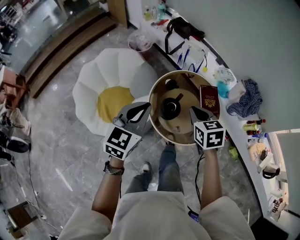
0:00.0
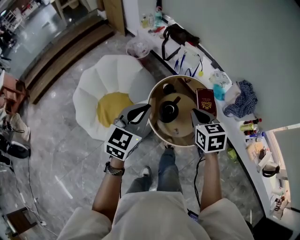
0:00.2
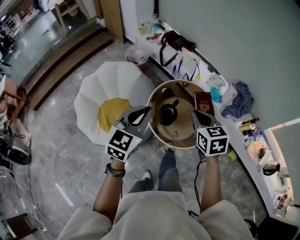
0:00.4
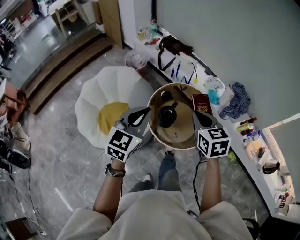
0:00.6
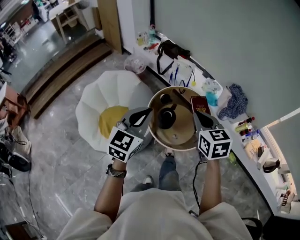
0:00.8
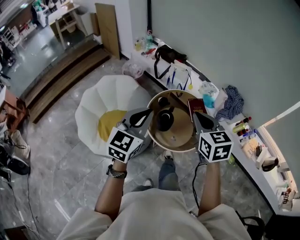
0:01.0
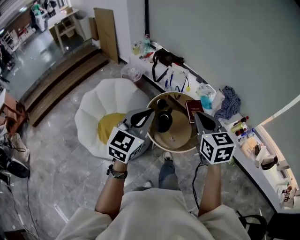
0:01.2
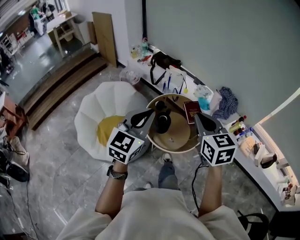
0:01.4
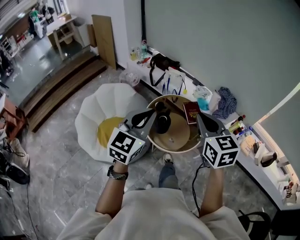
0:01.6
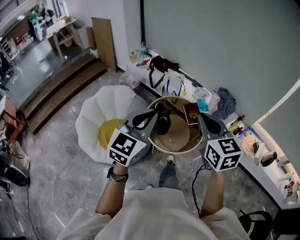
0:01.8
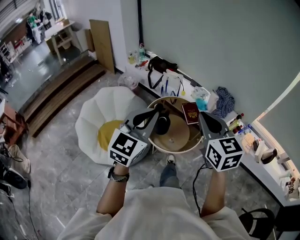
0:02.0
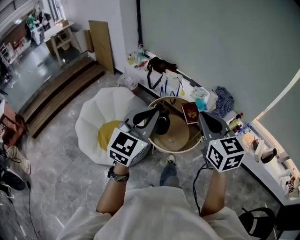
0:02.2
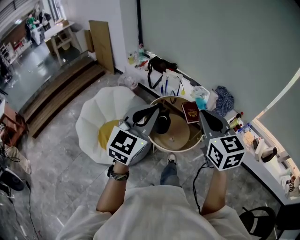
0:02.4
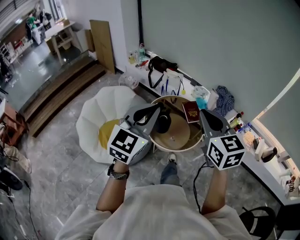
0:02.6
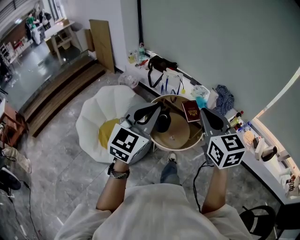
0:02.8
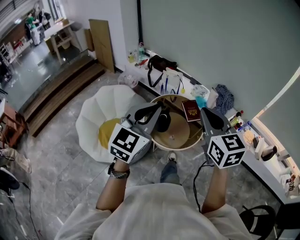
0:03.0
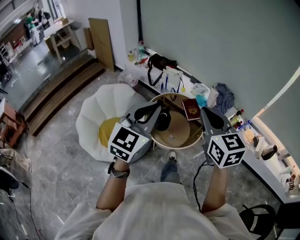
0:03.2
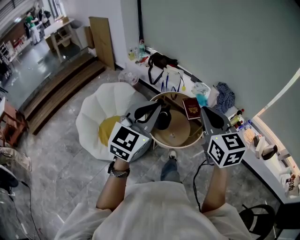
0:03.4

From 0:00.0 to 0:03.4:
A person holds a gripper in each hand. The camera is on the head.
From 0:00.0 to 0:01.6: The grippers both shift upward and backward by roughly 25 cm. The right gripper changes its angle by approximately 30 degrees.
From 0:01.6 to 0:03.4: The left gripper changes place by some 5 cm. The right gripper ends up some 5 cm from where it was.

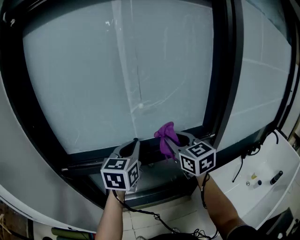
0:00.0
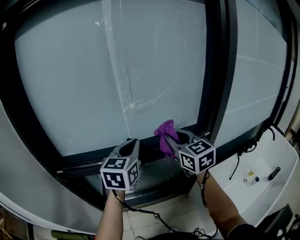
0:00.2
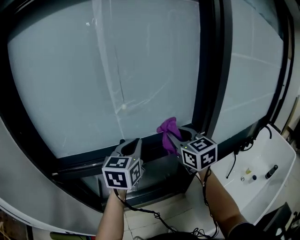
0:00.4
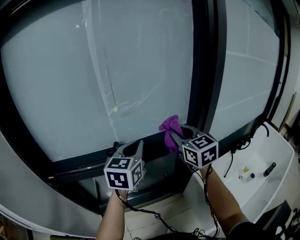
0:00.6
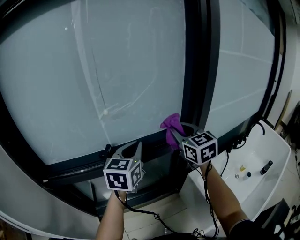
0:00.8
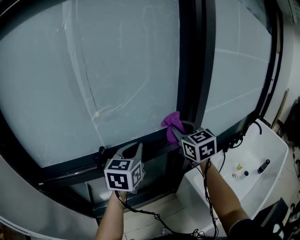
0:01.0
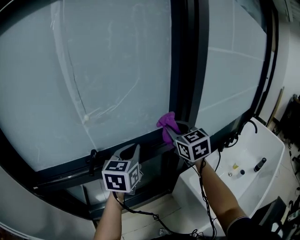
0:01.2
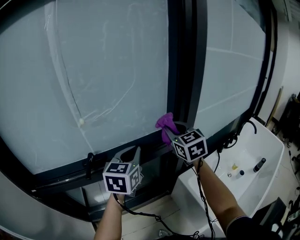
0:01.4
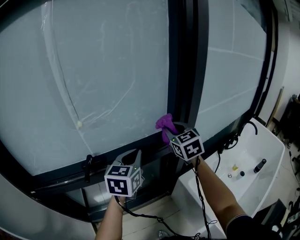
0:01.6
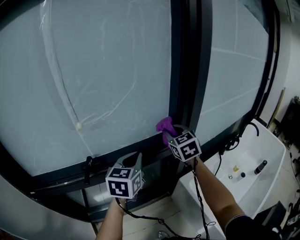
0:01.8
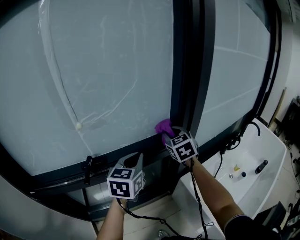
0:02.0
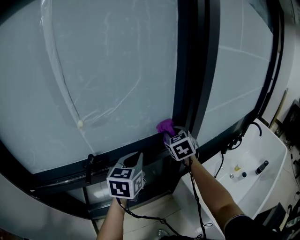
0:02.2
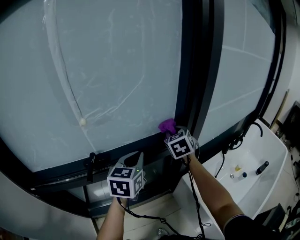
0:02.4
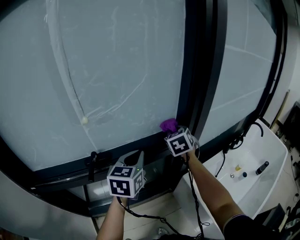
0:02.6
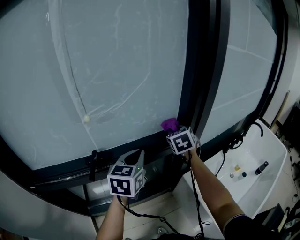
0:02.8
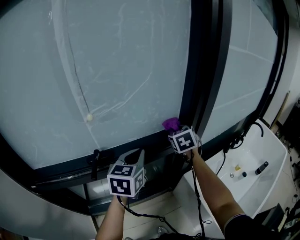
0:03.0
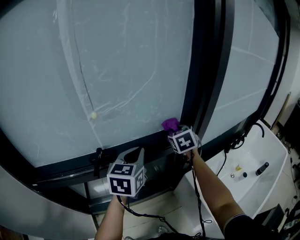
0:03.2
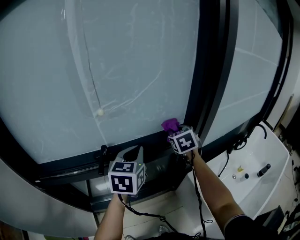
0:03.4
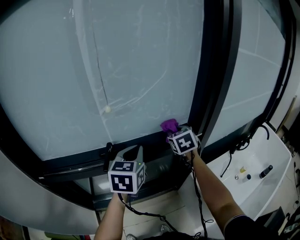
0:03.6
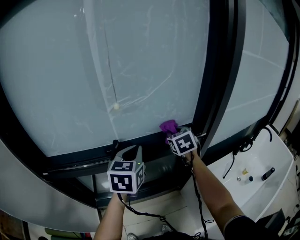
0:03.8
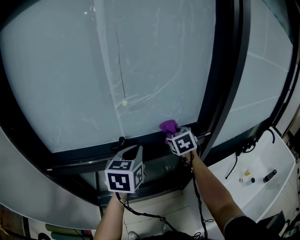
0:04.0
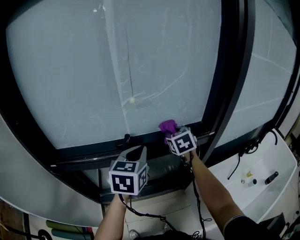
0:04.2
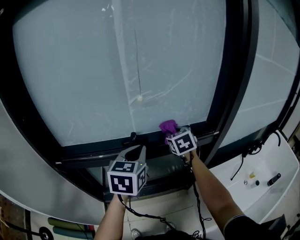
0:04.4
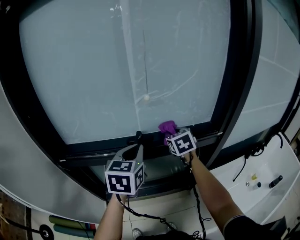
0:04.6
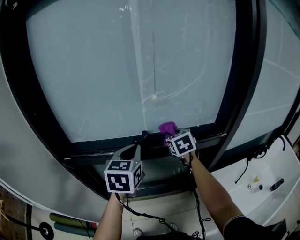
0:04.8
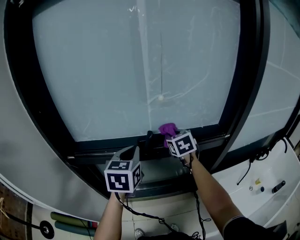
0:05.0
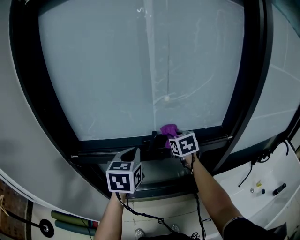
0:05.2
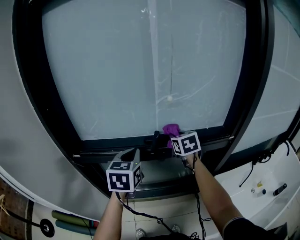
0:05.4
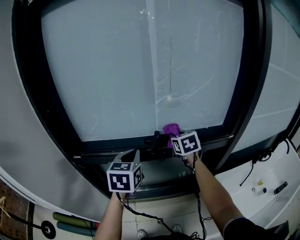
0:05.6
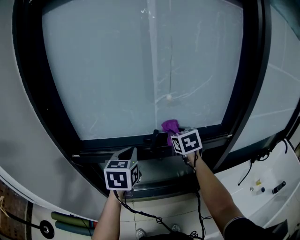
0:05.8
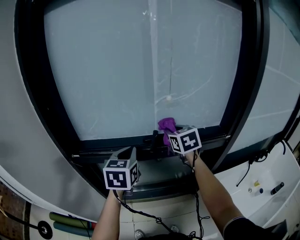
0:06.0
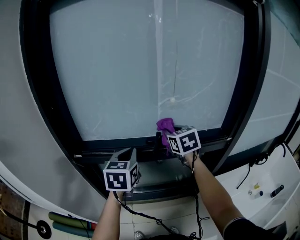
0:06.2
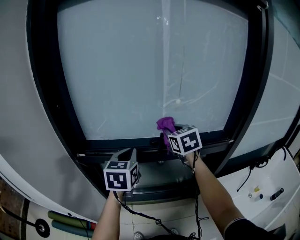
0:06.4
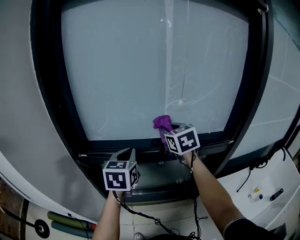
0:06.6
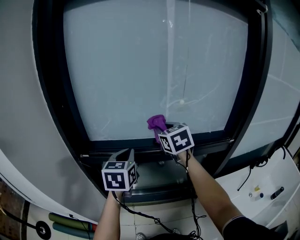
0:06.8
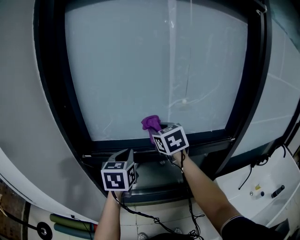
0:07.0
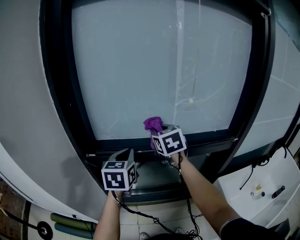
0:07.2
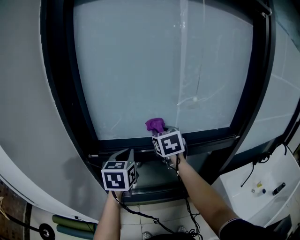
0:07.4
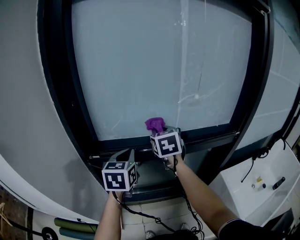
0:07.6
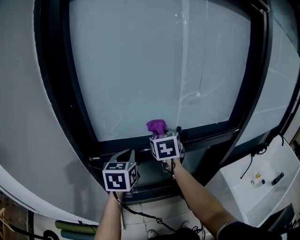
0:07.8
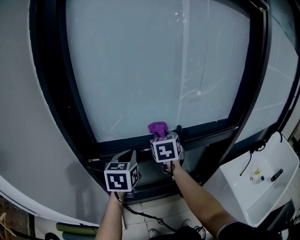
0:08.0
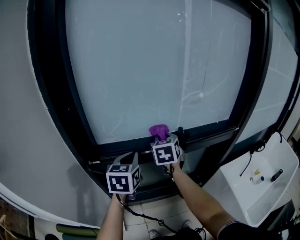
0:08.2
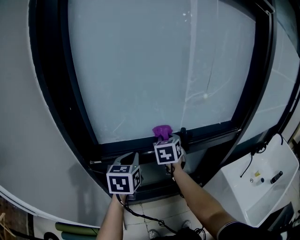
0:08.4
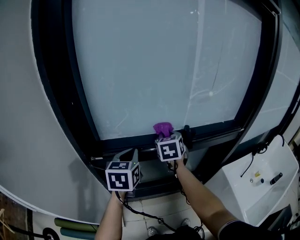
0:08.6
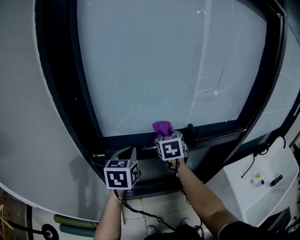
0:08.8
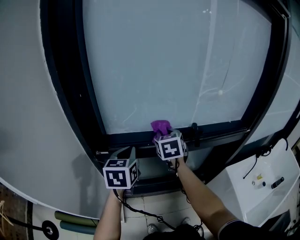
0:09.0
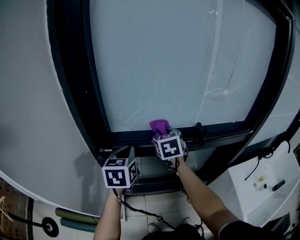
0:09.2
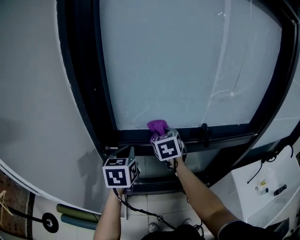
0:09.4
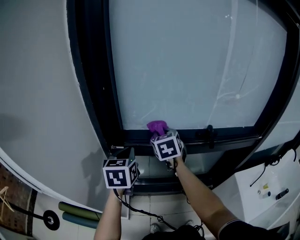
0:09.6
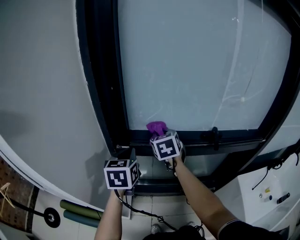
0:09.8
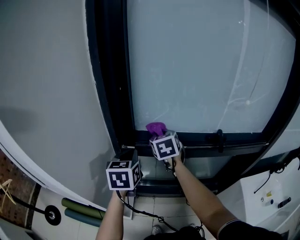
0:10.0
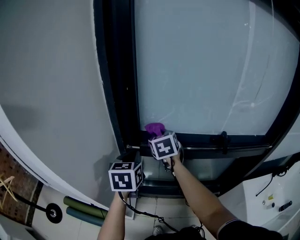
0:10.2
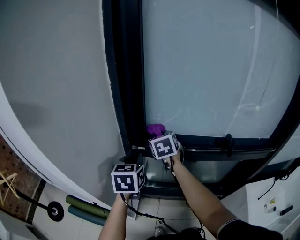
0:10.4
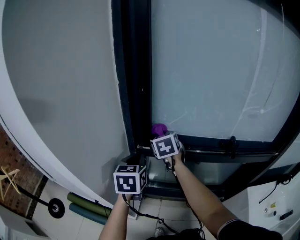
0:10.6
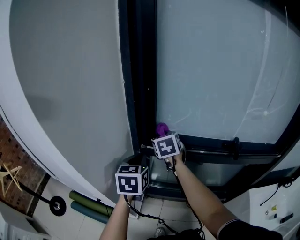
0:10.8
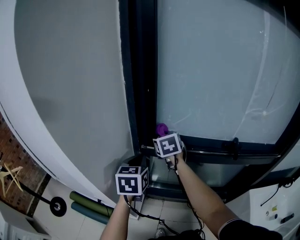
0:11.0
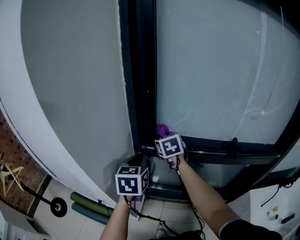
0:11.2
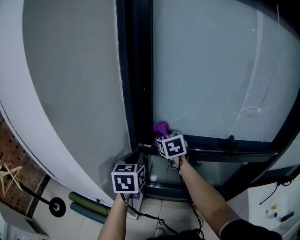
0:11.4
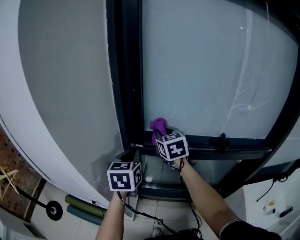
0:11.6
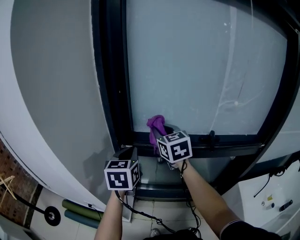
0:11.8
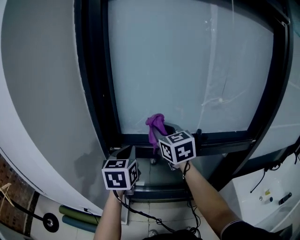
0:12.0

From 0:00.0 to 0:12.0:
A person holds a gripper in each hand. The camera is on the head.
From 0:00.0 to 0:01.6: Both grippers travel together to the right and forward, about 20 cm. The right gripper rotates approximately 20 degrees.
From 0:01.6 to 0:03.0: The right gripper is displaced downward by roughly 10 cm, and turns by approximately 20 degrees.
From 0:03.0 to 0:04.4: The right gripper is displaced to the left by roughly 15 cm. Meanwhile the left gripper moves to the left and backward, about 15 cm.
From 0:04.4 to 0:06.0: The left gripper heads to the left, covering some 15 cm. The right gripper goes roughly 10 cm to the left and upward.
From 0:06.0 to 0:07.6: Both grippers move to the left, some 15 cm.
From 0:07.6 to 0:09.0: The right gripper goes roughly 5 cm downward. Meanwhile the left gripper moves to the left, some 5 cm.
From 0:09.0 to 0:10.4: The left gripper moves to the left, about 10 cm. Meanwhile the right gripper goes some 20 cm to the left, and swivels approximately 20 degrees.
From 0:10.4 to 0:12.0: The right gripper shifts approximately 20 cm upward, to the right and backward, and swivels about 20 degrees; the left gripper moves to the right and upward, about 10 cm.

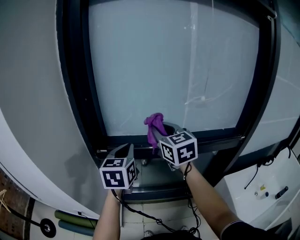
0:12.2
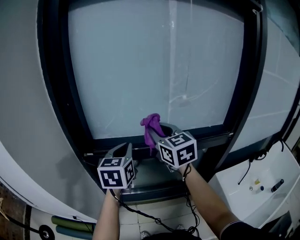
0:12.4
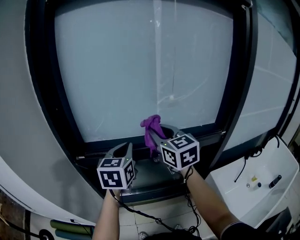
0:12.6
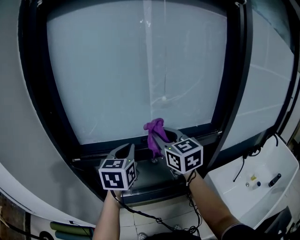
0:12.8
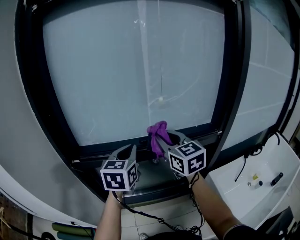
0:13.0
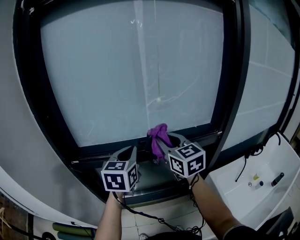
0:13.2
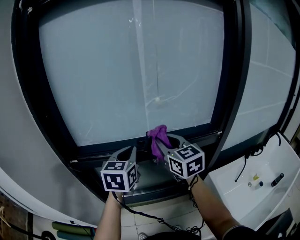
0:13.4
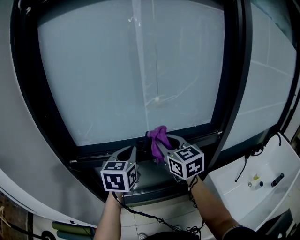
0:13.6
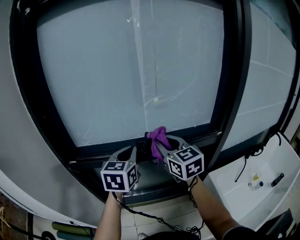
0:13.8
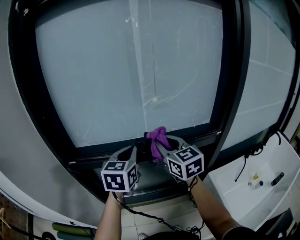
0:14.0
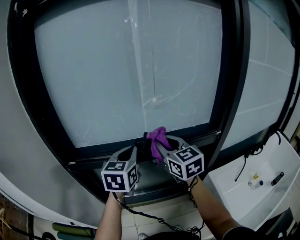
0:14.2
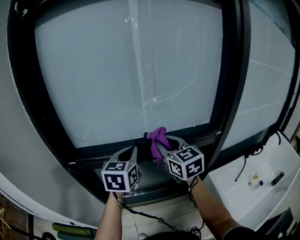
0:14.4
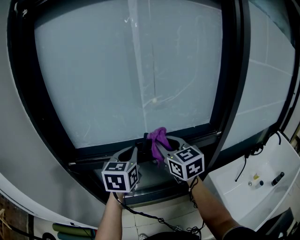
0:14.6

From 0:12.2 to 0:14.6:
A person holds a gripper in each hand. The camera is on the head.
From 0:12.2 to 0:13.4: Both grippers move to the right, roughly 15 cm.
From 0:13.4 to 0:14.6: The grippers stay close to where they were, moving slightly.

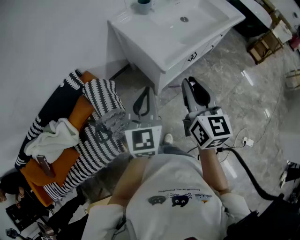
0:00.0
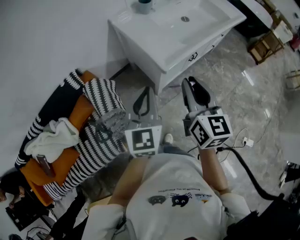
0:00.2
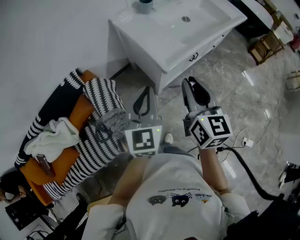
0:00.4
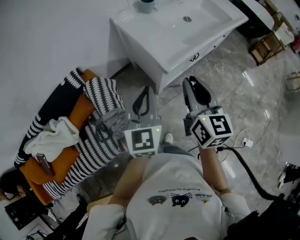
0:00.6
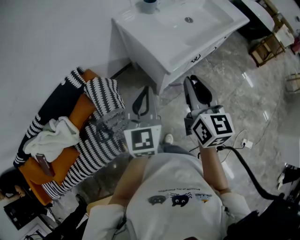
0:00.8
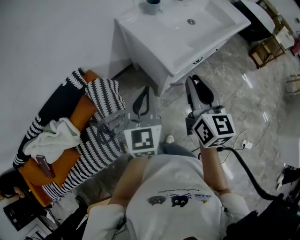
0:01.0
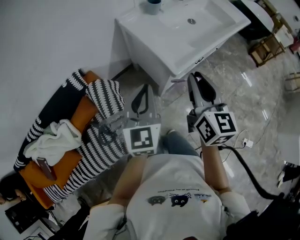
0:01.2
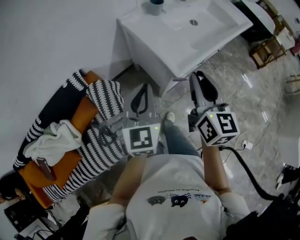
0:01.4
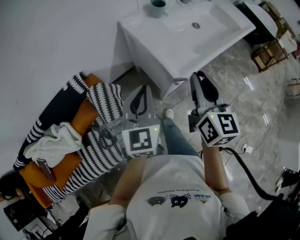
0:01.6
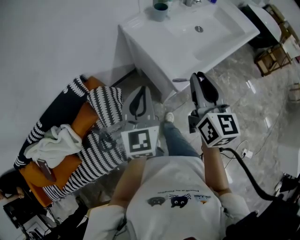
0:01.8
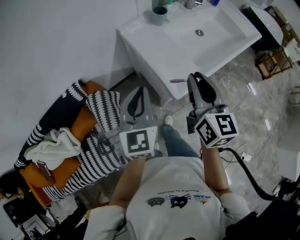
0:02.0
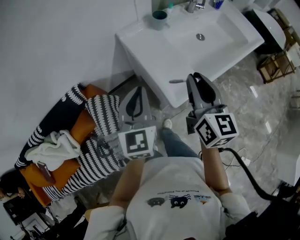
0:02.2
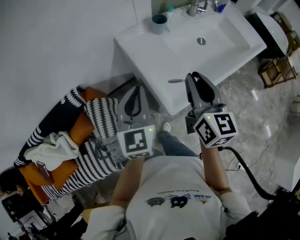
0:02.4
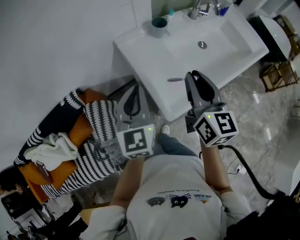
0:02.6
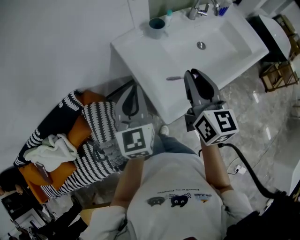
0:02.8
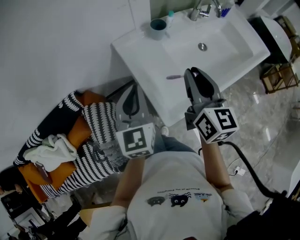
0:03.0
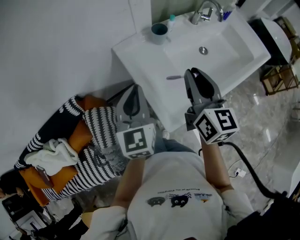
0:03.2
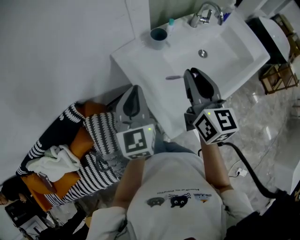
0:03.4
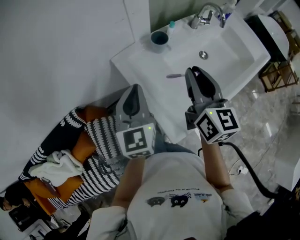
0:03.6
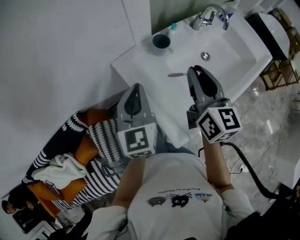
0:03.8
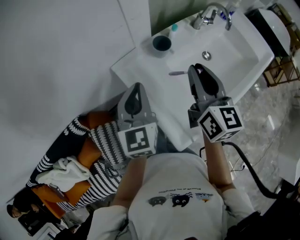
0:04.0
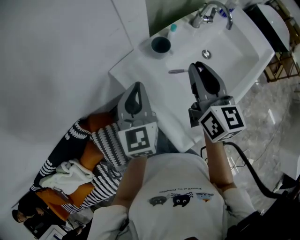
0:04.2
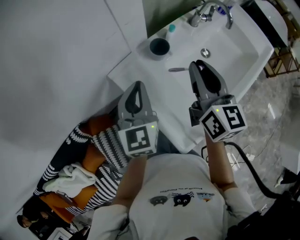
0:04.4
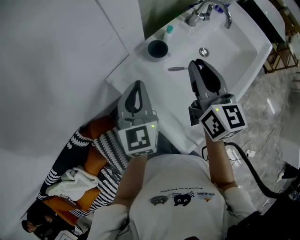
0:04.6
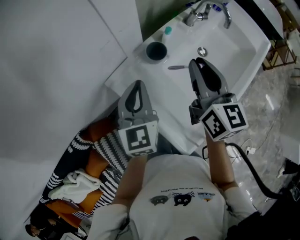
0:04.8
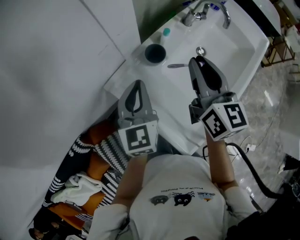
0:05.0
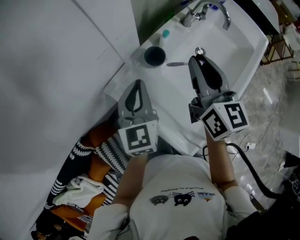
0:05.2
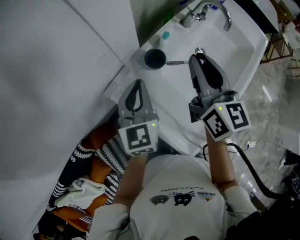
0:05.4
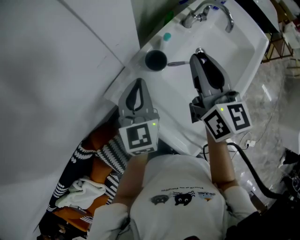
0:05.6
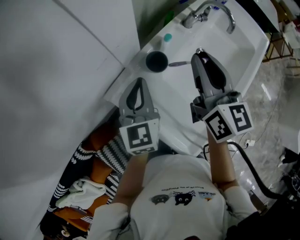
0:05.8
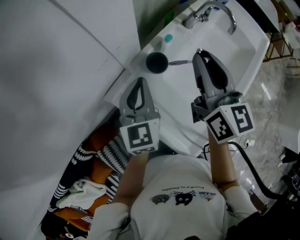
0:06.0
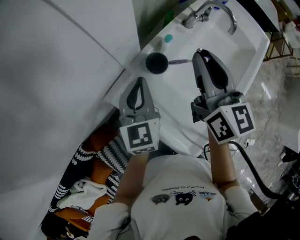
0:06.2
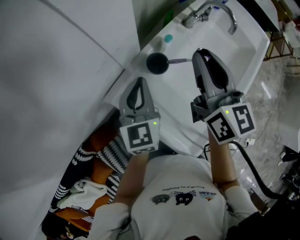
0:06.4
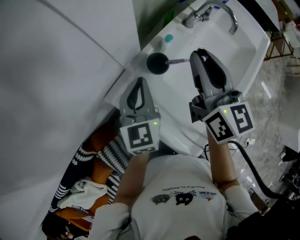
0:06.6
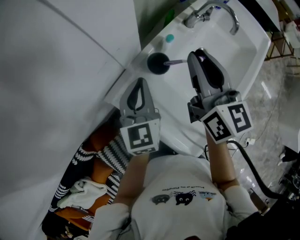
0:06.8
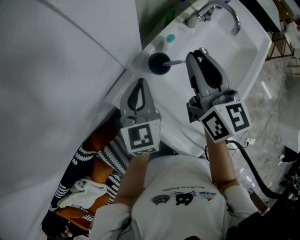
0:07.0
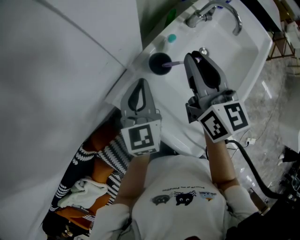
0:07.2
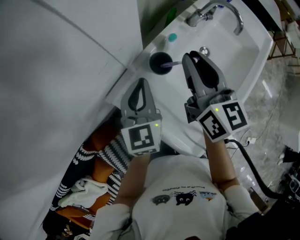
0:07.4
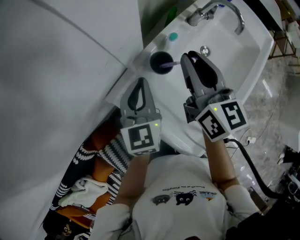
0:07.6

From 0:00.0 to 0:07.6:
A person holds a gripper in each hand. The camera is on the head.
From 0:00.0 to 0:01.6: The left gripper goes roughly 10 cm forward and to the left, while the right gripper goes roughly 10 cm forward.
From 0:01.6 to 0:03.0: The grippers both shift forward by approximately 20 cm.
From 0:03.0 to 0:04.6: The grippers both shift forward by about 20 cm.
From 0:04.6 to 0:06.0: The two grippers go approximately 10 cm forward.
From 0:06.0 to 0:07.6: The right gripper ends up about 5 cm from where it was.
